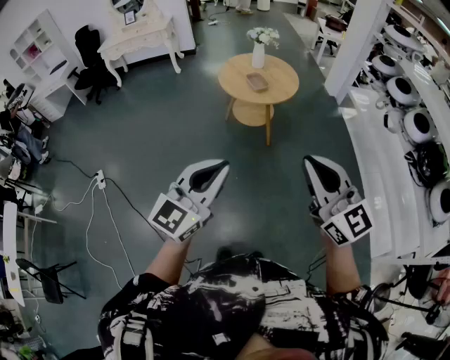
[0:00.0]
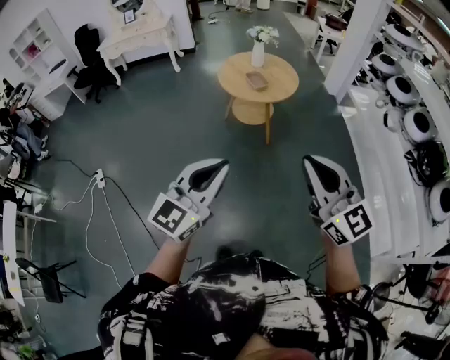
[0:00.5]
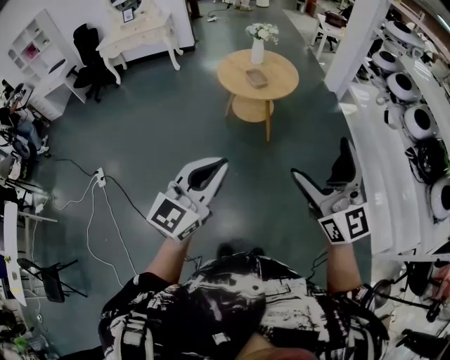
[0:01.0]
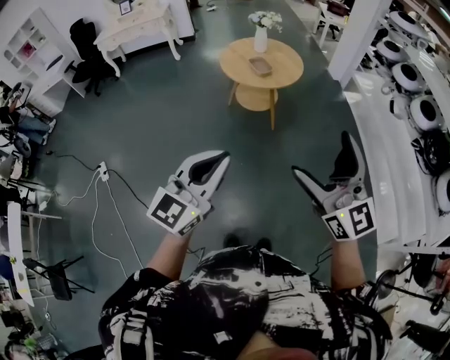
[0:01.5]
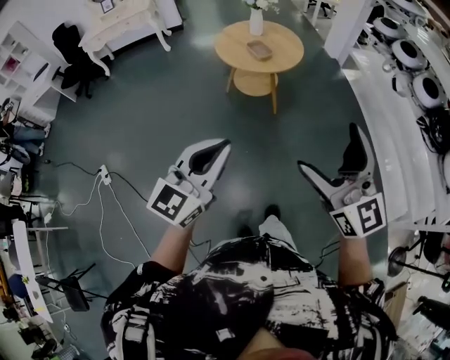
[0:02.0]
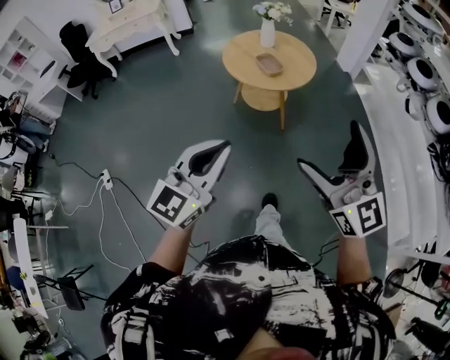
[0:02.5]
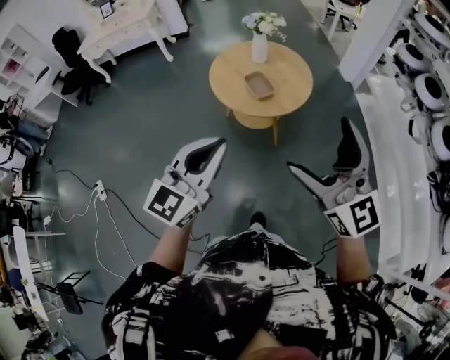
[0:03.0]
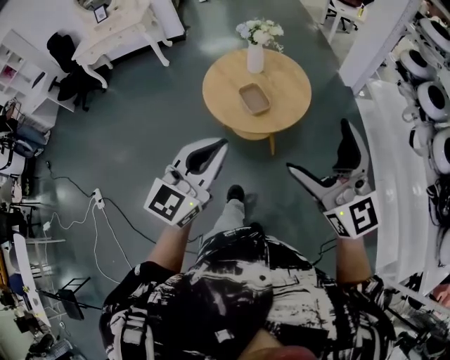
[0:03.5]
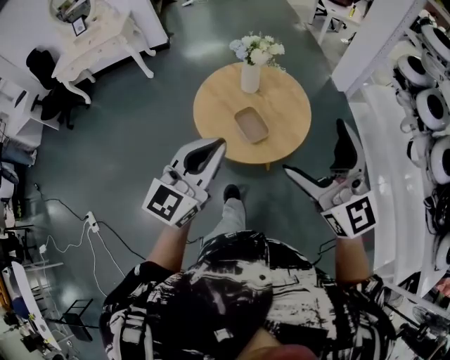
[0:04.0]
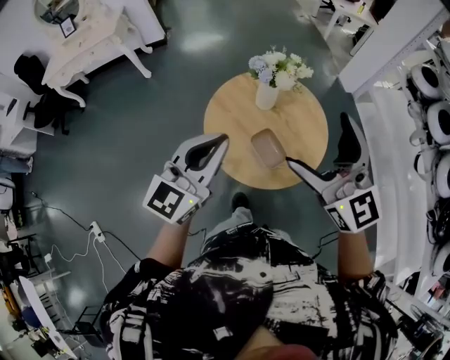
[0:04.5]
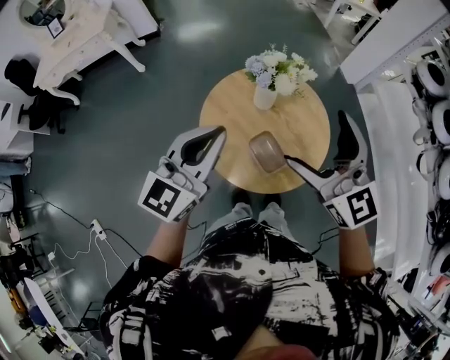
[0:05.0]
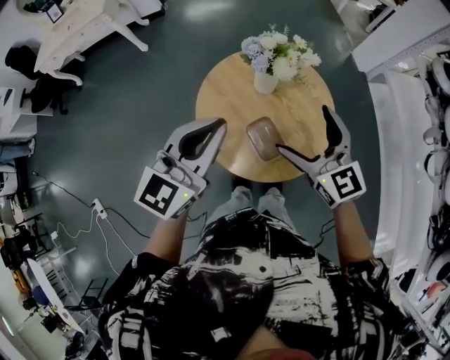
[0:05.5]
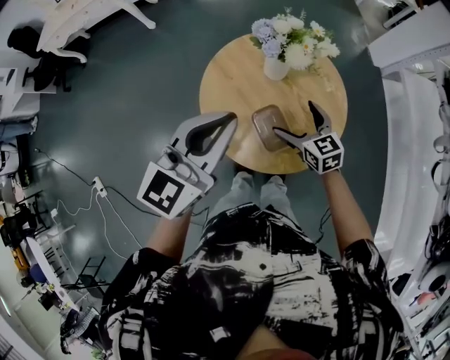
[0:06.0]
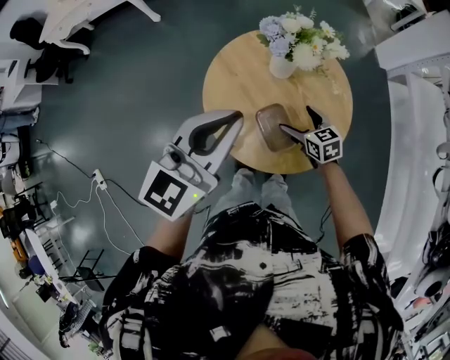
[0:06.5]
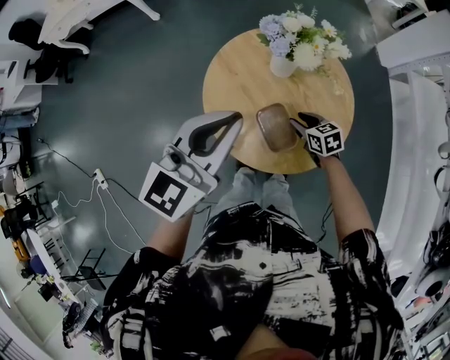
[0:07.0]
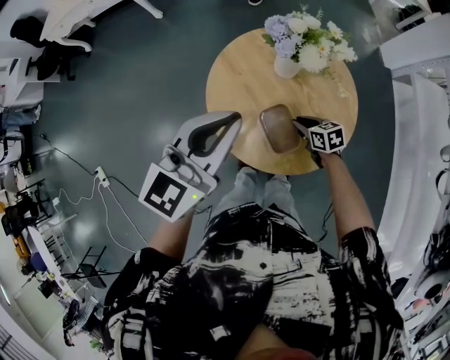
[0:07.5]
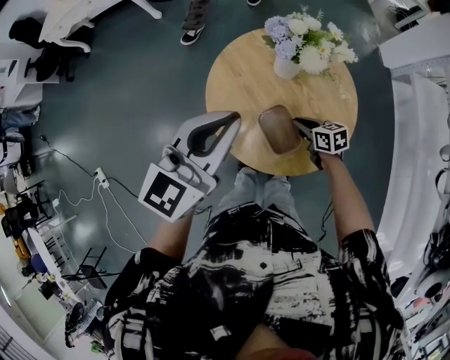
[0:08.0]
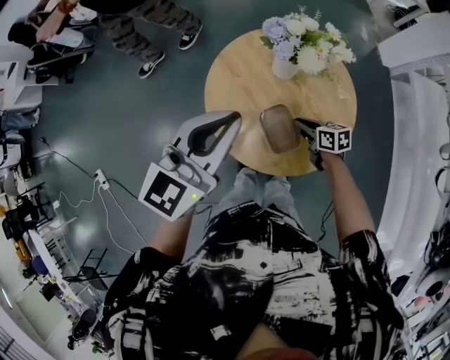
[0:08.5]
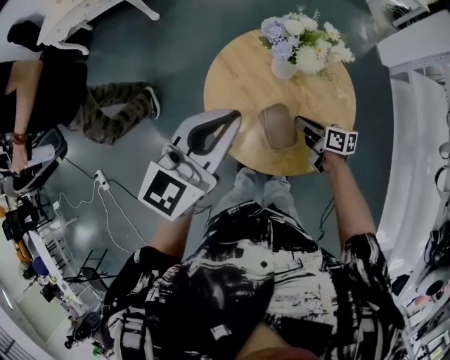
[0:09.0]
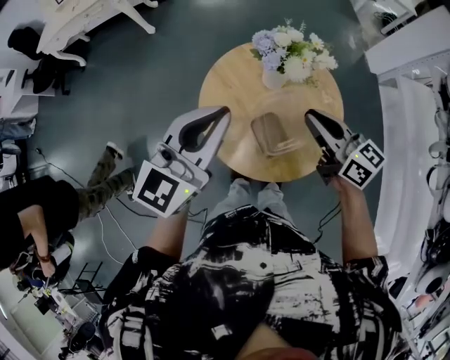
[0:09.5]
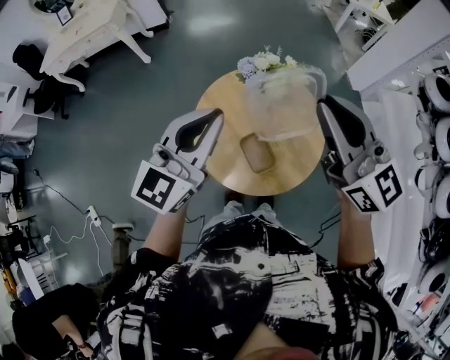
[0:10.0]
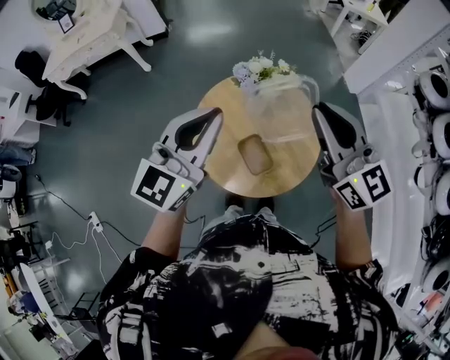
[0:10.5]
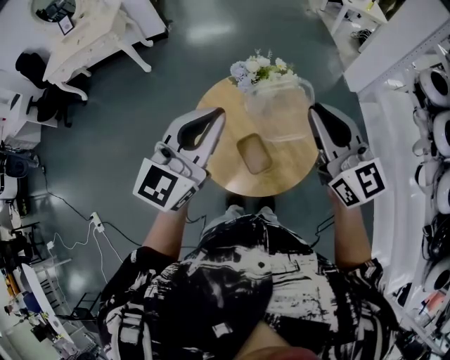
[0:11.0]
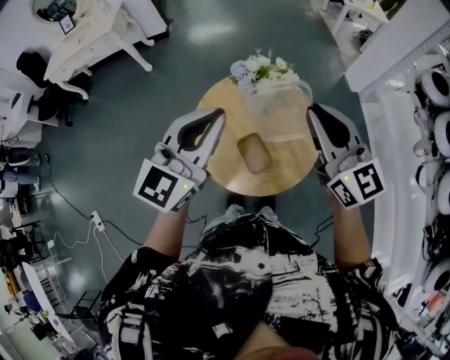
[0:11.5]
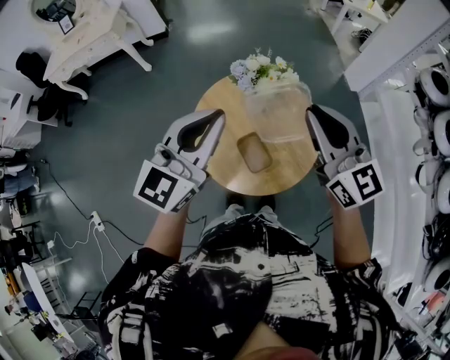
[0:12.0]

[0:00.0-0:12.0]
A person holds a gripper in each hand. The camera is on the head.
0:00.0 to 0:02.0: The two grippers go approximately 5 cm to the left. The right gripper opens.
0:02.0 to 0:04.0: Both grippers are carried forward, approximately 60 cm.
0:04.0 to 0:06.0: The left gripper heads forward, covering roughly 25 cm. Meanwhile the right gripper shifts roughly 50 cm downward and forward, and points its fingers about 40 degrees further downward.
0:06.0 to 0:08.0: The right gripper shifts some 15 cm downward, turns by roughly 30 degrees, and closes up.
0:08.0 to 0:10.0: The left gripper shifts about 10 cm upward. The right gripper goes approximately 50 cm upward, and tips its fingers upward by about 50 degrees.
0:10.0 to 0:12.0: The right gripper ends up about 5 cm from where it was.

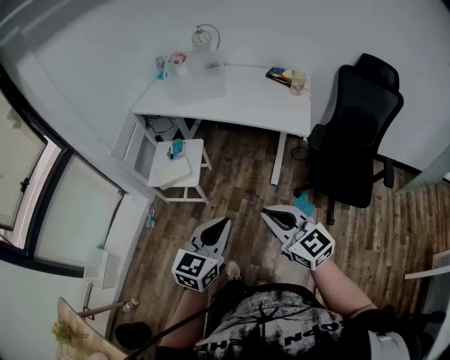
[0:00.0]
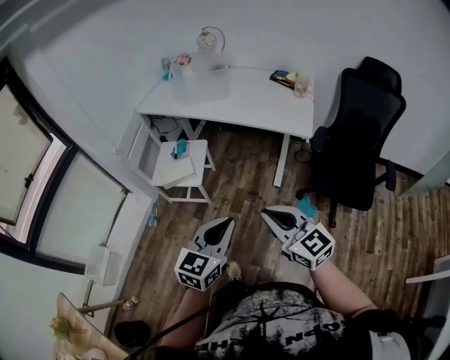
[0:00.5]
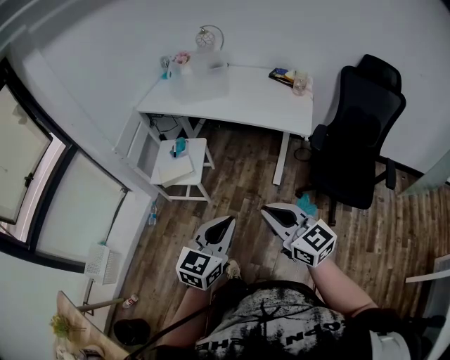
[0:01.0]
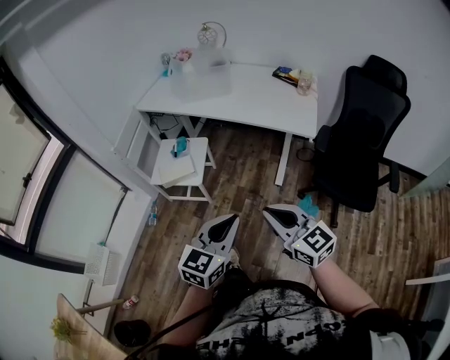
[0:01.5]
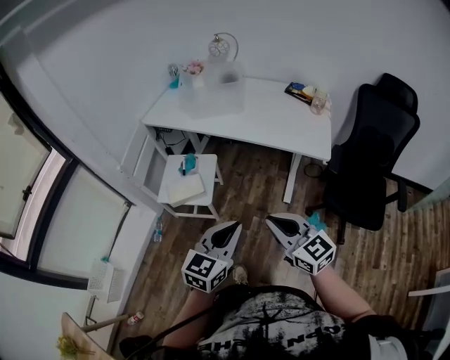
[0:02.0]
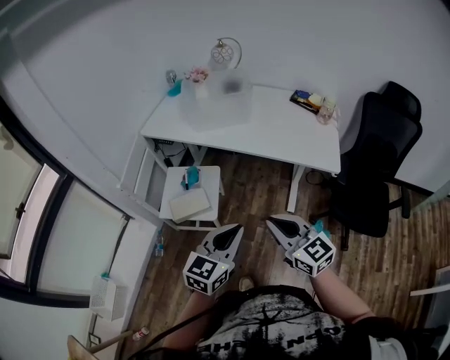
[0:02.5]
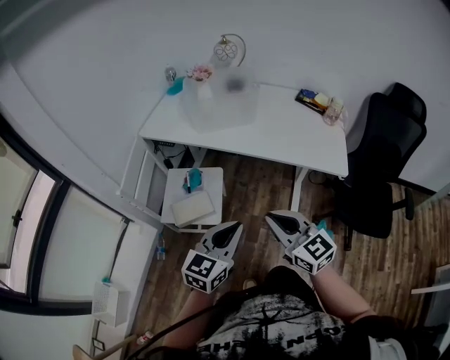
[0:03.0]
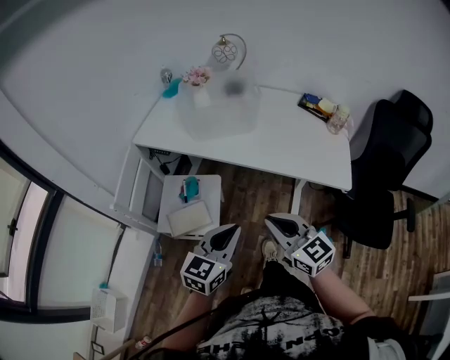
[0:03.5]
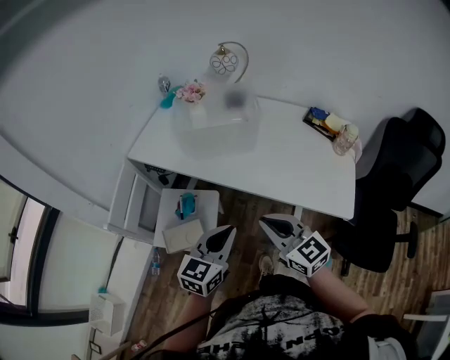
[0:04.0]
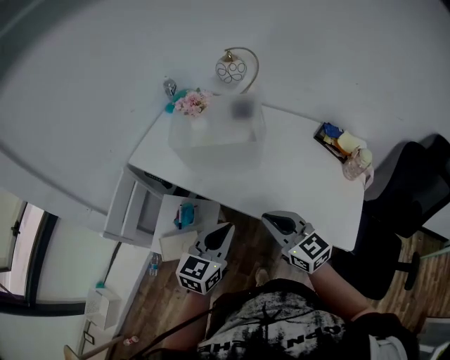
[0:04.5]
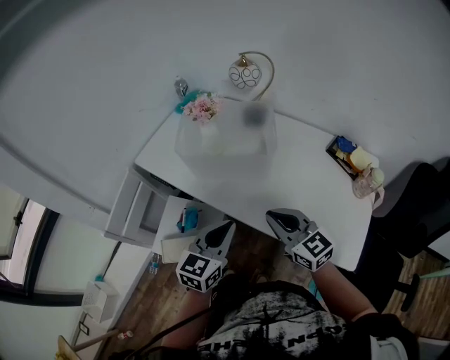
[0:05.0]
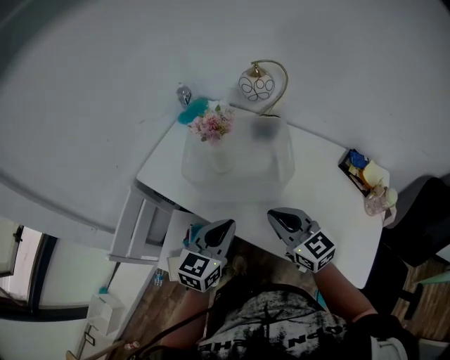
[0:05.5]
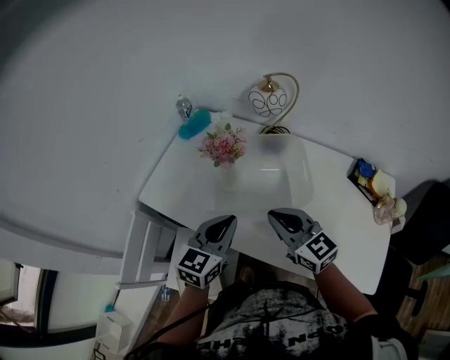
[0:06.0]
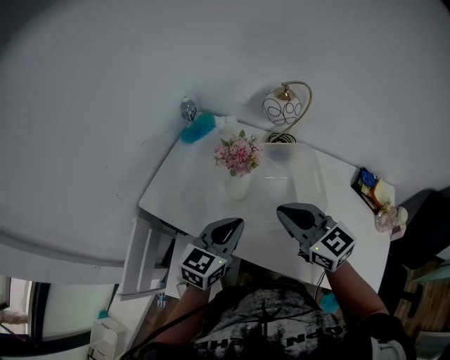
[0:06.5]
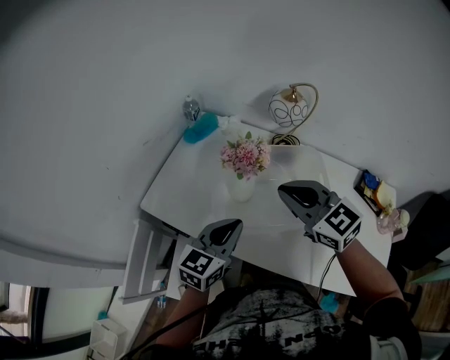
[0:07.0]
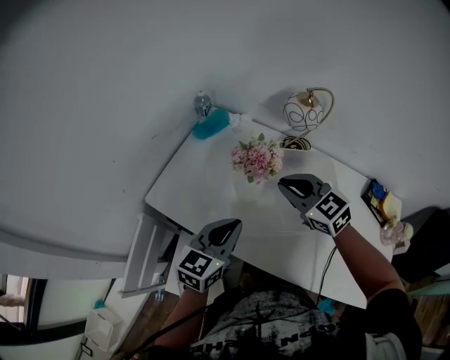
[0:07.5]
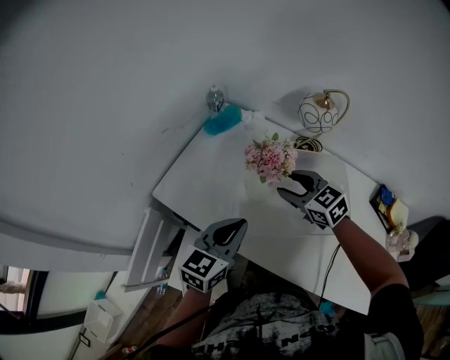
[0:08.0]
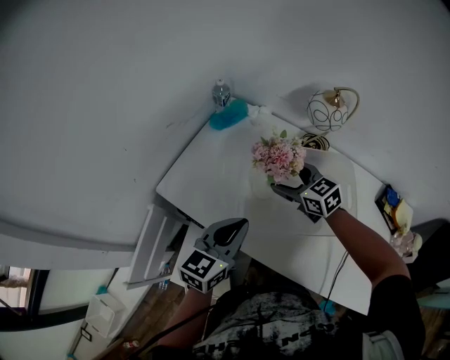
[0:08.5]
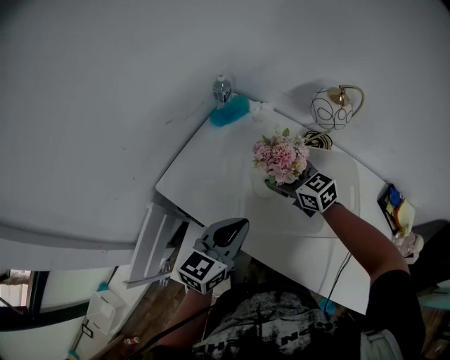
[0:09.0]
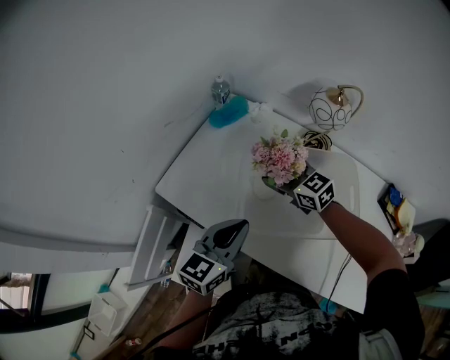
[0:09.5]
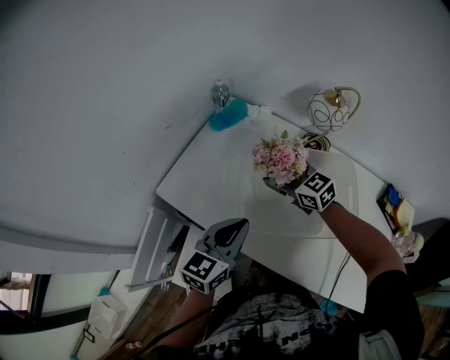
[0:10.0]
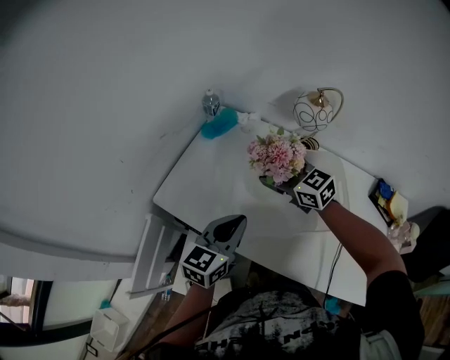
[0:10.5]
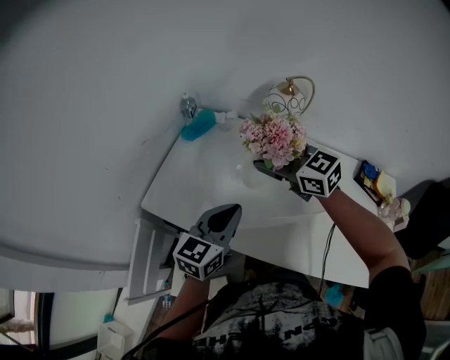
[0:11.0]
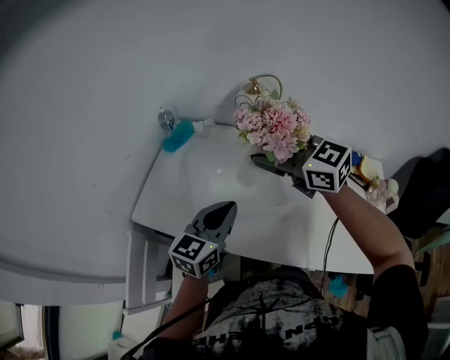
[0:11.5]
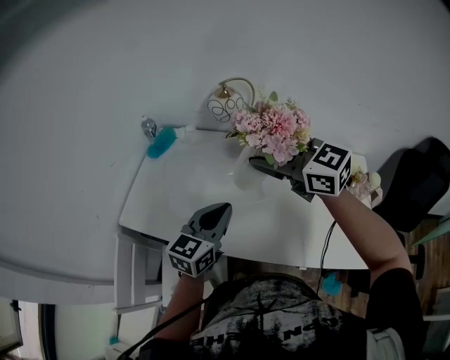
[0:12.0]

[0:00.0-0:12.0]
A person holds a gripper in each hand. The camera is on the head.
0:00.0 to 0:02.0: The two grippers go roughly 10 cm forward.
0:02.0 to 0:04.0: Both grippers move forward, some 30 cm.
0:04.0 to 0:06.0: Both grippers move forward, approximately 35 cm.
0:06.0 to 0:08.0: The right gripper goes approximately 20 cm forward, rotates some 20 degrees, and opens its fingers. Meanwhile the left gripper shifts roughly 10 cm to the left and forward.
0:08.0 to 0:10.0: The right gripper is displaced forward by approximately 5 cm, and opens its fingers.
0:10.0 to 0:12.0: The right gripper shifts approximately 35 cm upward, to the right and backward, while the left gripper moves to the right, about 15 cm.

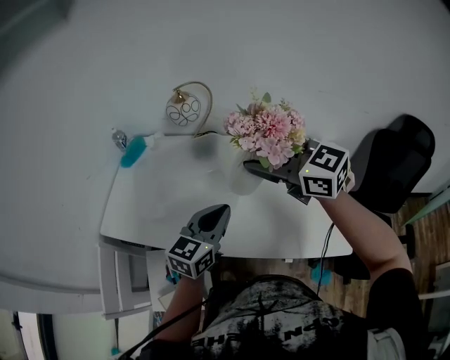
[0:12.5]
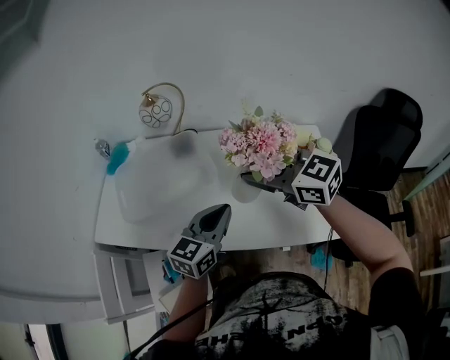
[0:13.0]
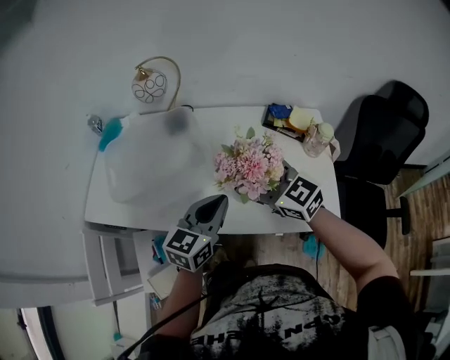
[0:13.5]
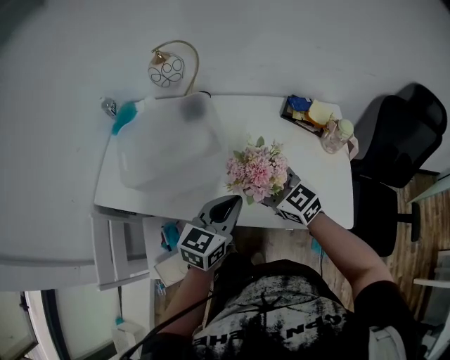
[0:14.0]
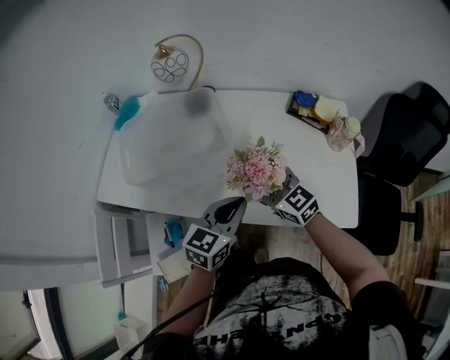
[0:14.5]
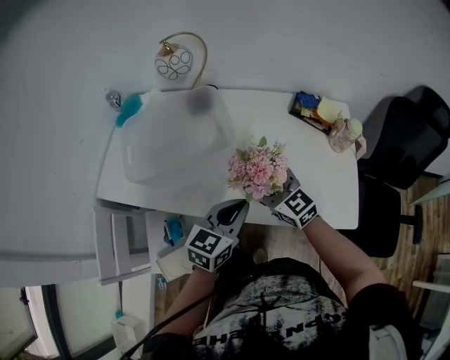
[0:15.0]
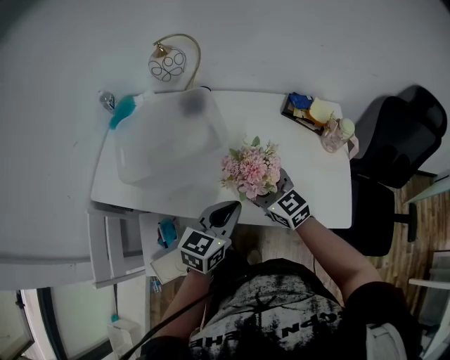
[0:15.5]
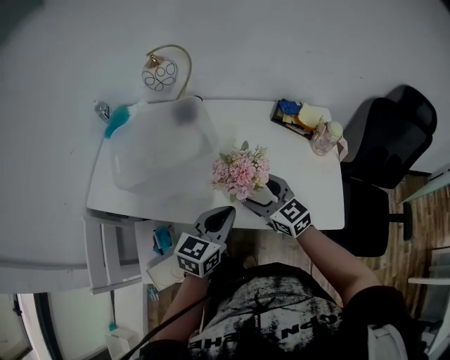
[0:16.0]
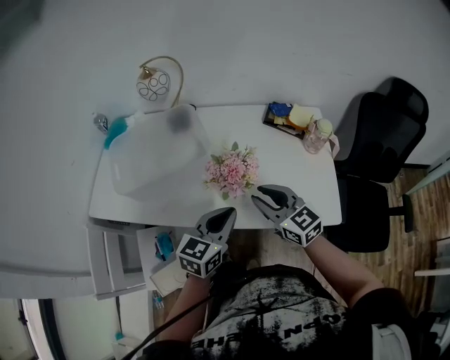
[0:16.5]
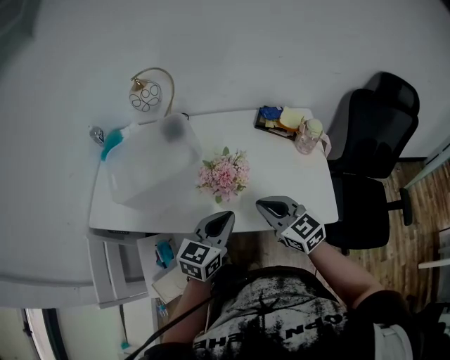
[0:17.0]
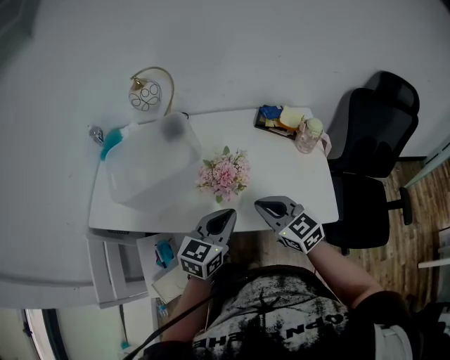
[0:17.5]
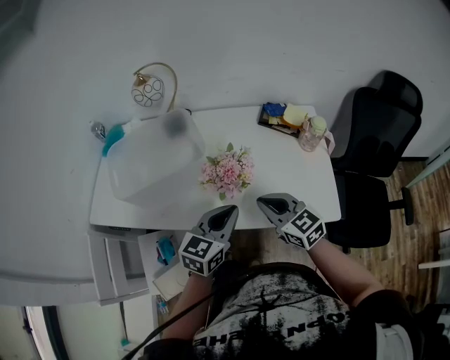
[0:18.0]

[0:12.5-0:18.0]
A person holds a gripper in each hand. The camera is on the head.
0:12.5 to 0:14.5: The left gripper heads downward, backward and to the right, covering roughly 15 cm, while the right gripper moves downward, some 25 cm.
0:14.5 to 0:16.0: The grippers make only small movements.
0:16.0 to 0:18.0: The right gripper travels backward and to the right by about 10 cm, and closes its fingers.
